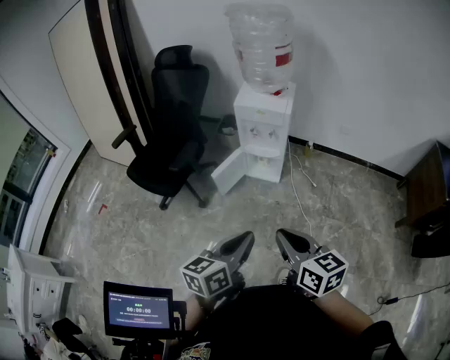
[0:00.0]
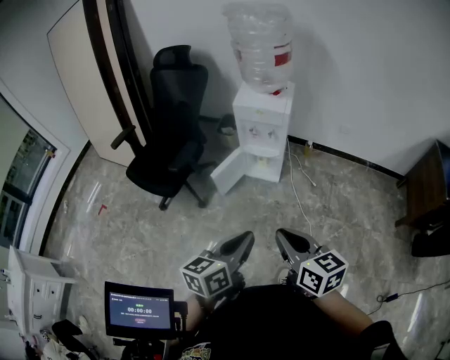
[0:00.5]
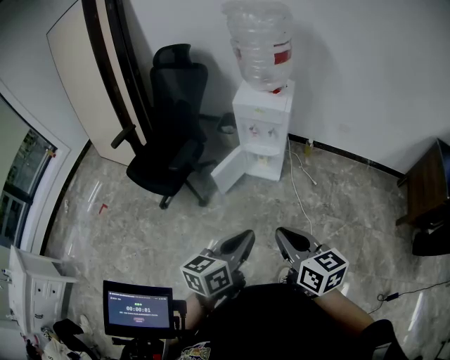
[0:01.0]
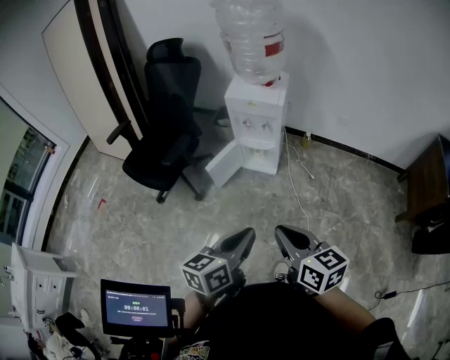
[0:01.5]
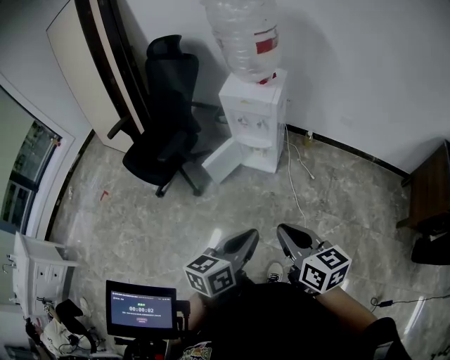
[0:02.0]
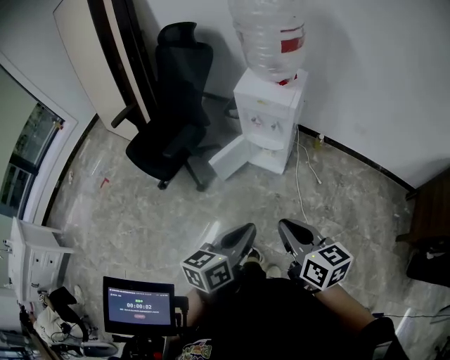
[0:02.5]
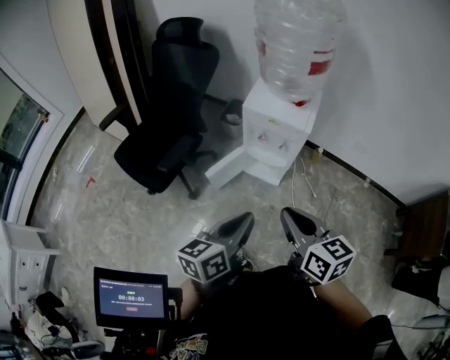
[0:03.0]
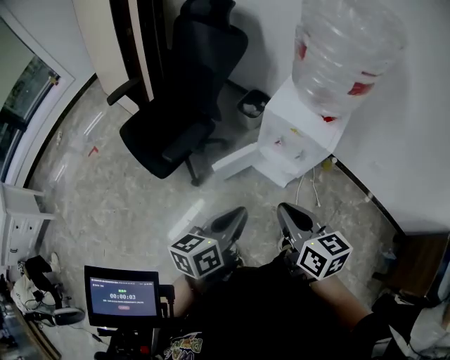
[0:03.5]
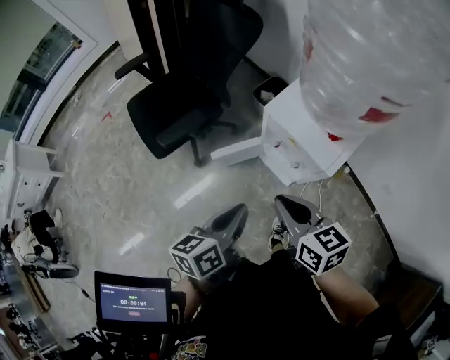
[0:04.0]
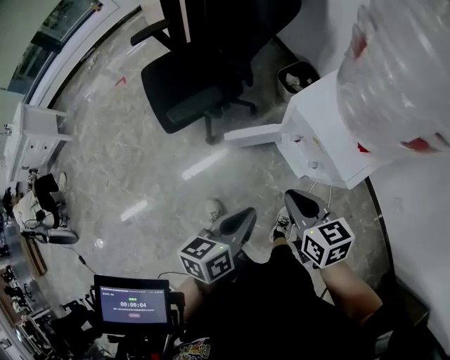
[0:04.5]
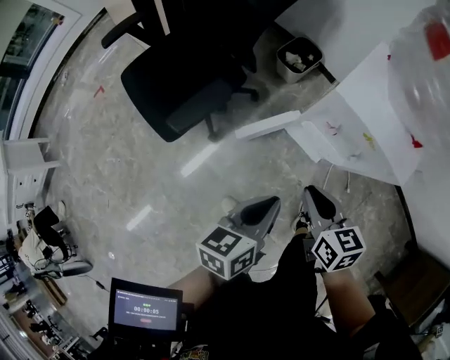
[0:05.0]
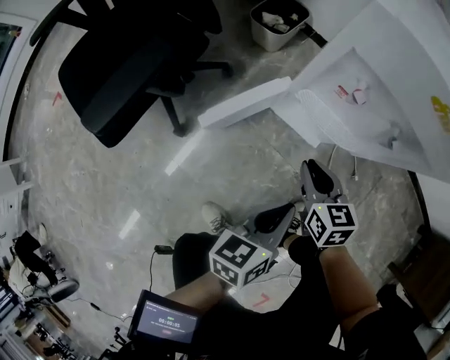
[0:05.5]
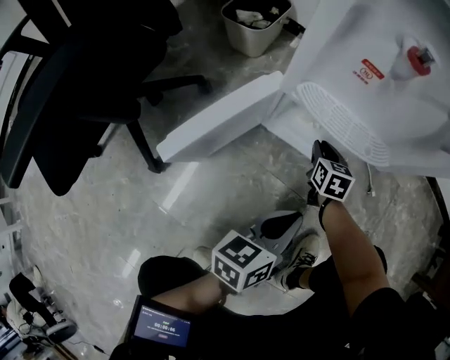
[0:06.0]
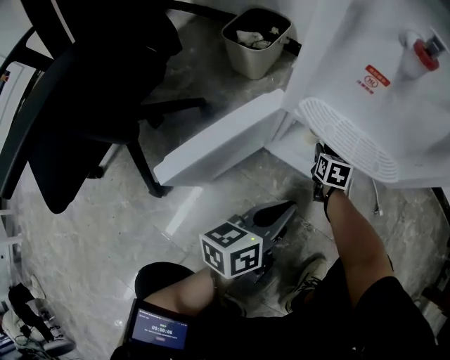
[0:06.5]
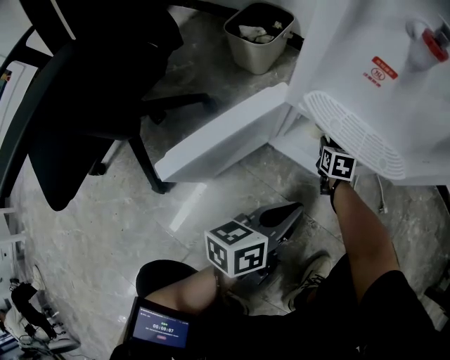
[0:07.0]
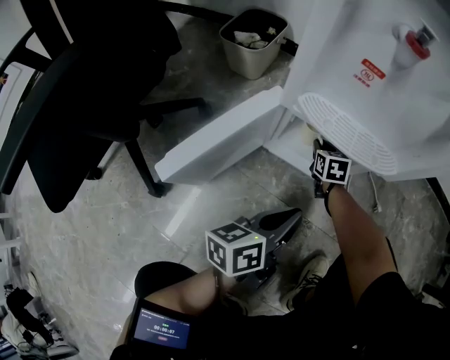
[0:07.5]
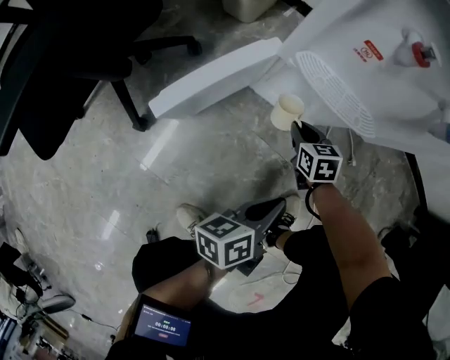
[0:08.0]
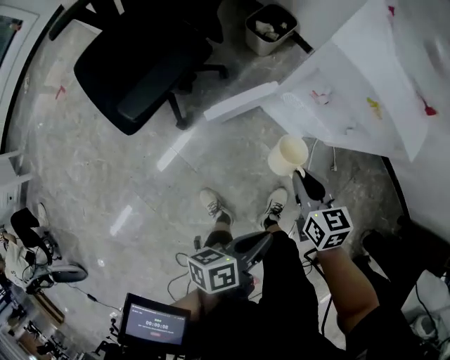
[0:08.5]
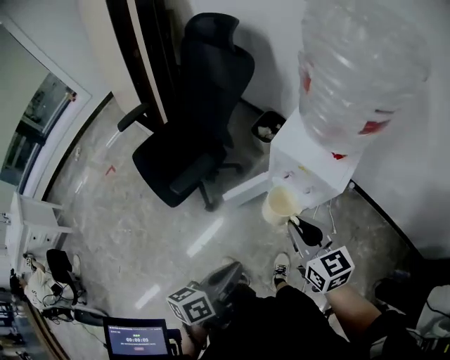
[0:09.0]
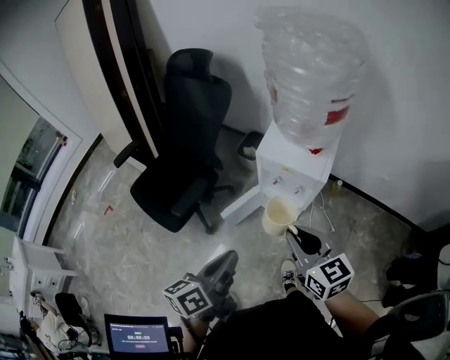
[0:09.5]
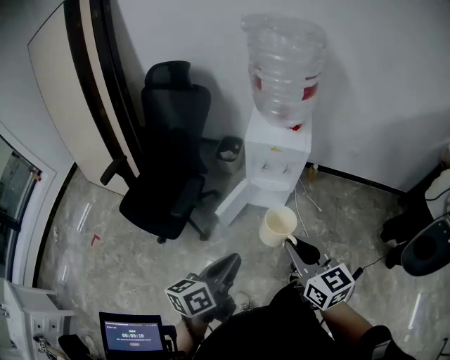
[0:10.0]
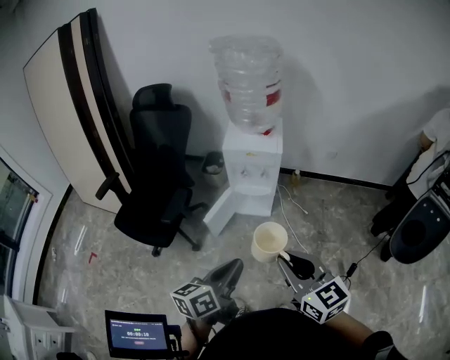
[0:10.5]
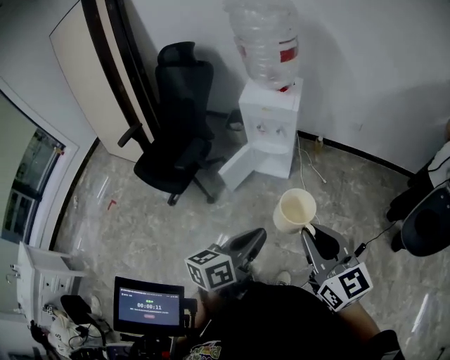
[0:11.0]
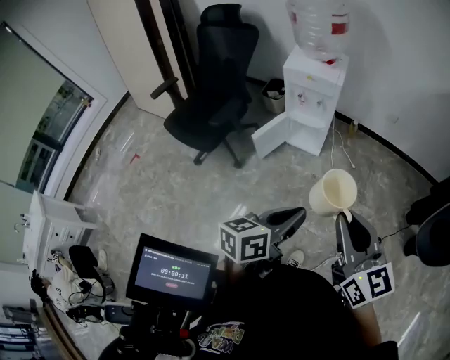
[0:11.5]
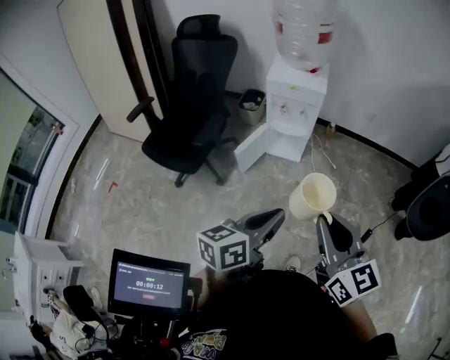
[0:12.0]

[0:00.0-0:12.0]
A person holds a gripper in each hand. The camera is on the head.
0:00.0 to 0:02.0: The grippers both shift to the right by roughly 10 cm.
0:02.0 to 0:04.0: The left gripper changes place by some 35 cm, and changes its angle by approximately 40 degrees. Meanwhile the right gripper changes place by approximately 40 cm, and changes its angle by about 30 degrees.
0:04.0 to 0:06.0: Both grippers travel together downward, roughly 60 cm. The left gripper turns by about 40 degrees; the right gripper turns by approximately 50 degrees.
0:06.0 to 0:08.0: The left gripper swivels some 20 degrees, while the right gripper moves backward, approximately 5 cm.
0:08.0 to 0:10.0: The right gripper moves upward and backward, approximately 80 cm, and tips its fingers upward by approximately 40 degrees. The left gripper heads upward, covering roughly 60 cm, and swivels approximately 20 degrees.
0:10.0 to 0:12.0: The right gripper heads backward, covering about 20 cm, while the left gripper travels backward and to the right by about 20 cm.

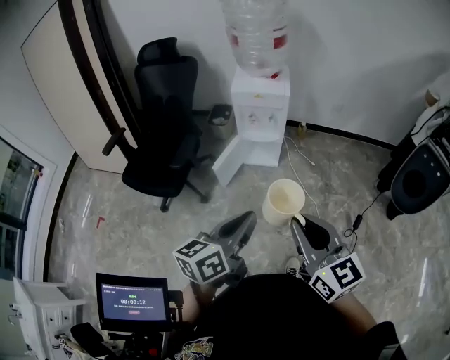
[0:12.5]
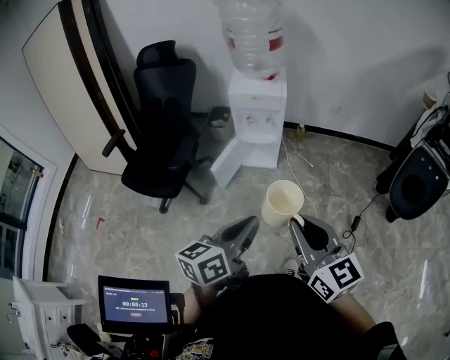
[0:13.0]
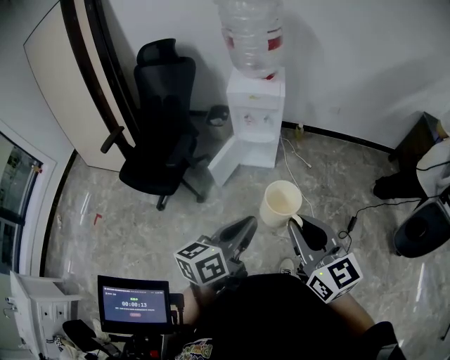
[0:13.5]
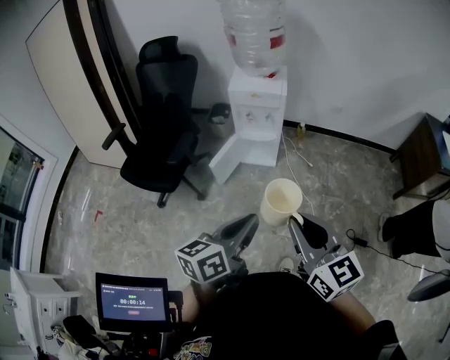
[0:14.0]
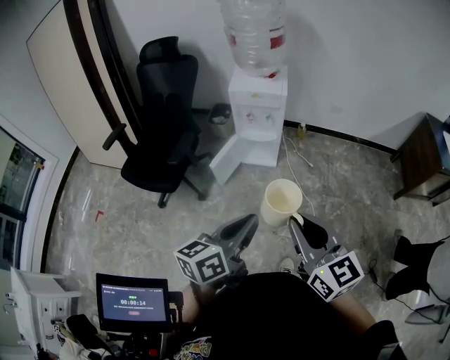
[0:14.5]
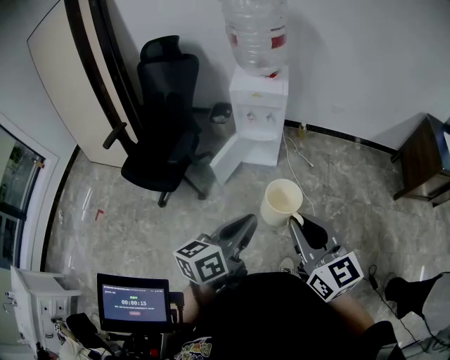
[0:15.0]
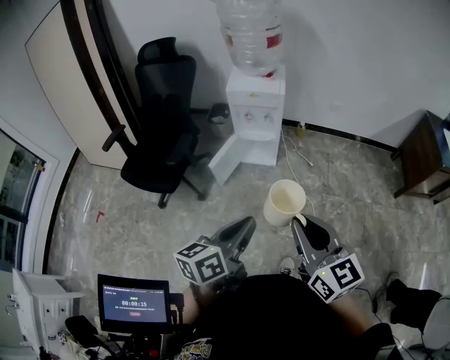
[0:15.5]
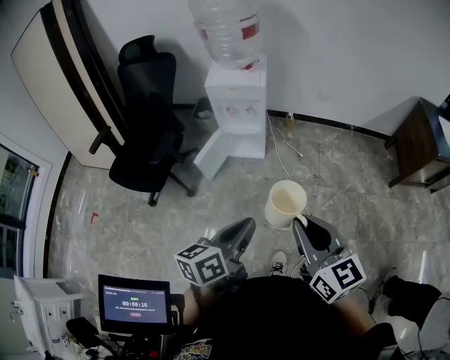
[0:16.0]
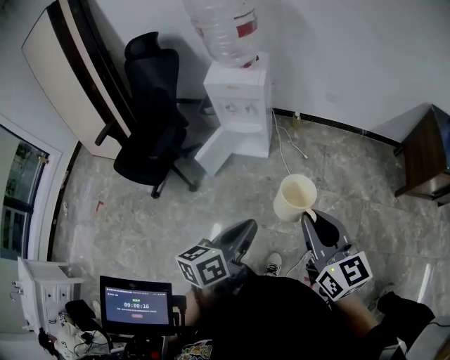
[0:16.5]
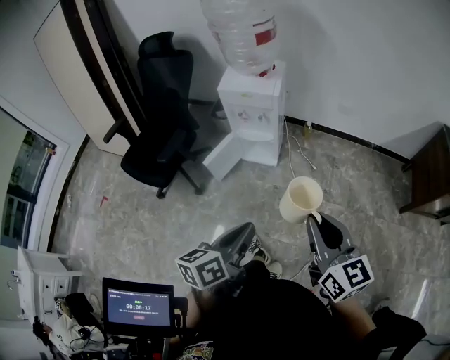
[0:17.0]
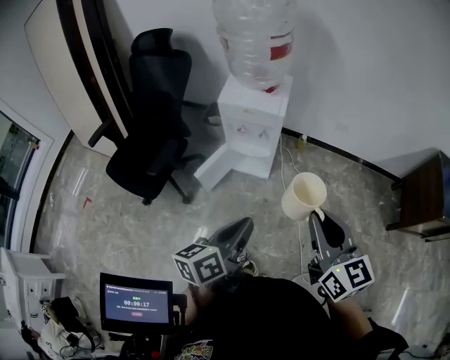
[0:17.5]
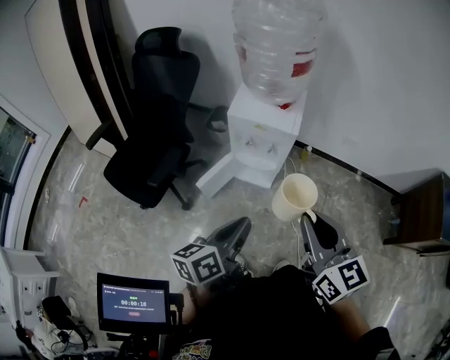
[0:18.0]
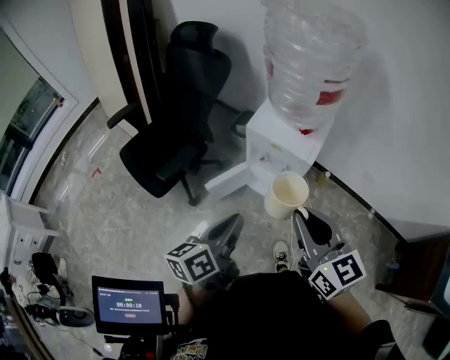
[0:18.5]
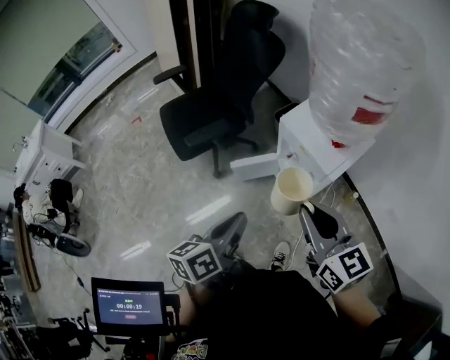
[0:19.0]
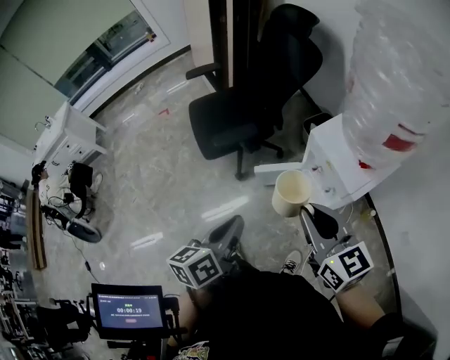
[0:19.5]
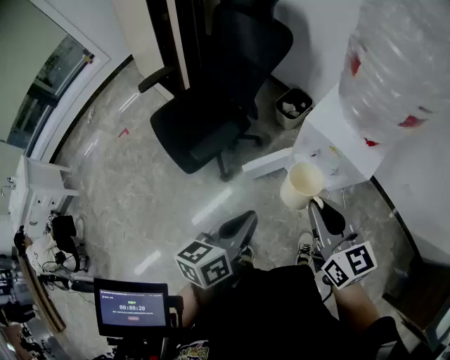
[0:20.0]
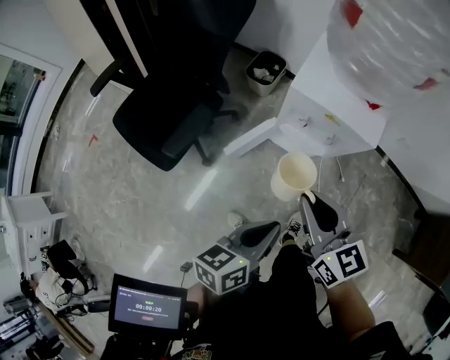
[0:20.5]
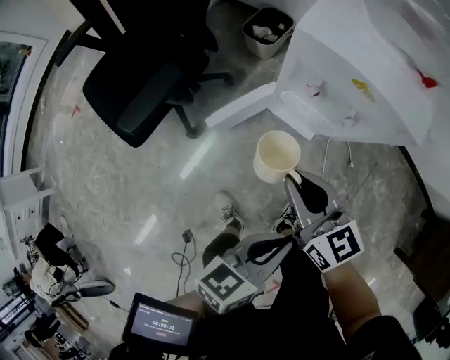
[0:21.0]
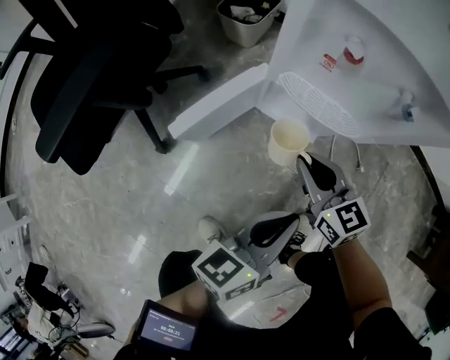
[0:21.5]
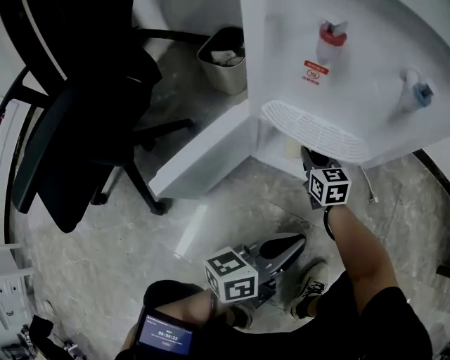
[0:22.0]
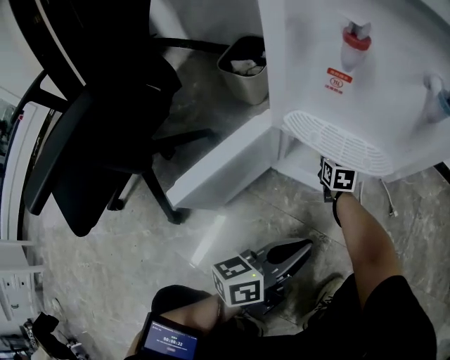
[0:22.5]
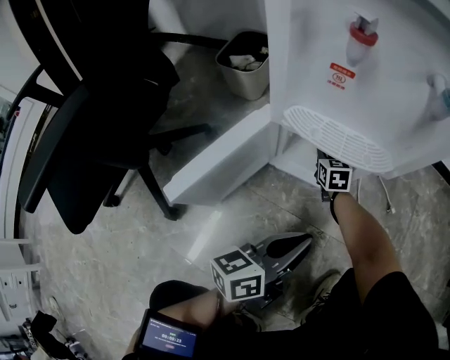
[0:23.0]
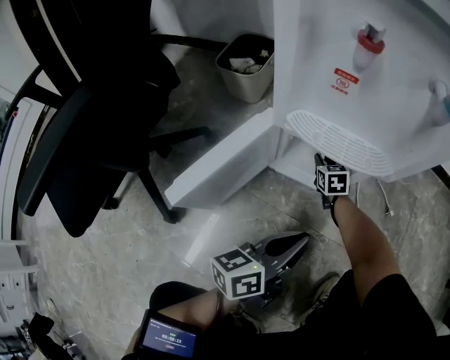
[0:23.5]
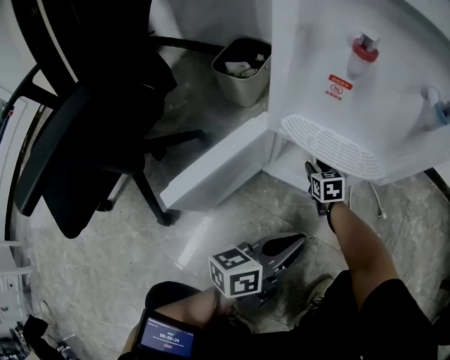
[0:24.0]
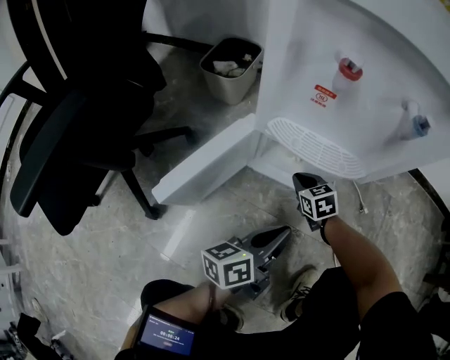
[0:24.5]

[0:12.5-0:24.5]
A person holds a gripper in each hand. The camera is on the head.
0:12.5 to 0:14.5: The grippers stay close to where they were, moving slightly.
0:14.5 to 0:16.5: The grippers both shift to the right by some 15 cm.
0:16.5 to 0:18.5: Both grippers move forward, about 35 cm. The right gripper turns by roughly 20 degrees, while the left gripper swivels some 30 degrees.
0:18.5 to 0:20.5: The two grippers go roughly 15 cm downward. The left gripper rotates some 20 degrees.
0:20.5 to 0:22.5: The right gripper moves downward and forward, roughly 80 cm, and rotates roughly 30 degrees. Meanwhile the left gripper heads downward, covering roughly 50 cm, and changes its angle by roughly 20 degrees.
0:22.5 to 0:24.5: The right gripper goes approximately 10 cm backward, turns by roughly 20 degrees, and opens and closes again.

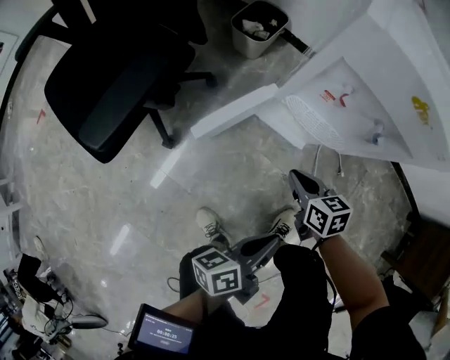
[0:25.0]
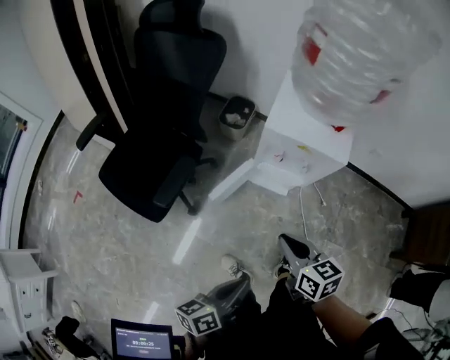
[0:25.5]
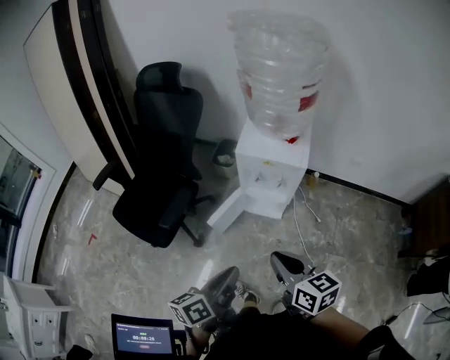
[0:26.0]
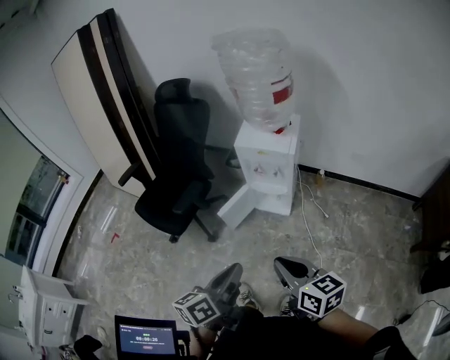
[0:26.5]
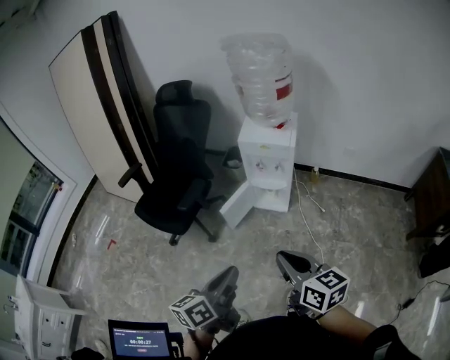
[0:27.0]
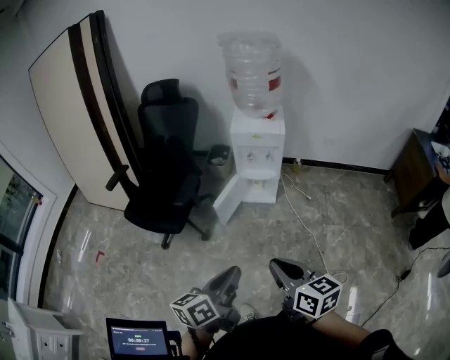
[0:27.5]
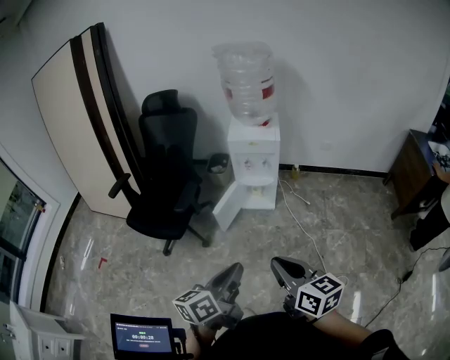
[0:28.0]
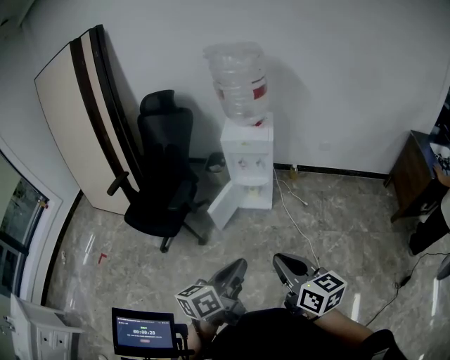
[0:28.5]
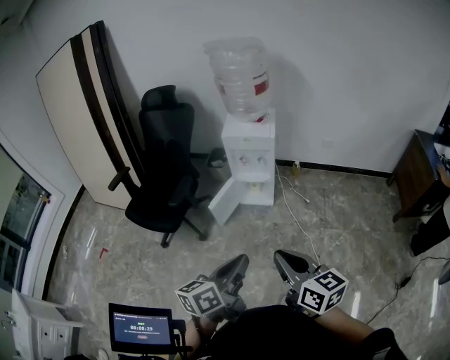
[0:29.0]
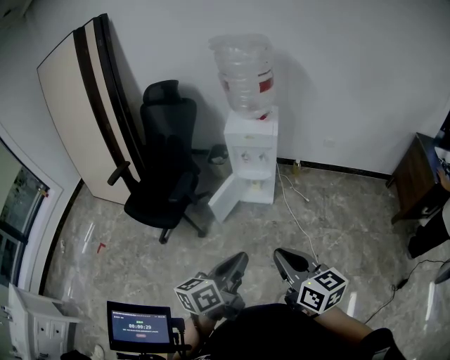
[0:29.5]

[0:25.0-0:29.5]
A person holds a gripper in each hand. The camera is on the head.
0:25.0 to 0:27.0: The grippers both shift upward and backward by about 60 cm. The left gripper changes its angle by about 30 degrees. Meanwhile the right gripper points its fingers approximately 30 degrees further upward.
0:27.0 to 0:29.5: The left gripper shifts some 5 cm backward, and travels to the left and back again, roughly 5 cm each way. Meanwhile the right gripper travels backward by roughly 10 cm.
